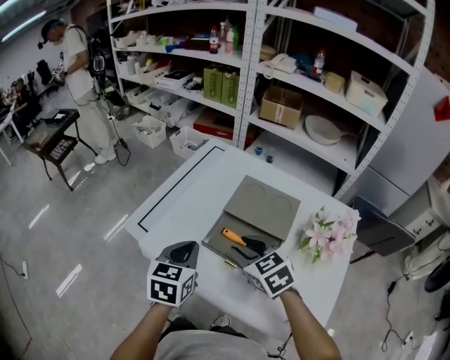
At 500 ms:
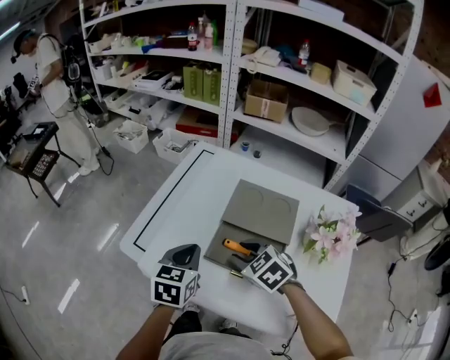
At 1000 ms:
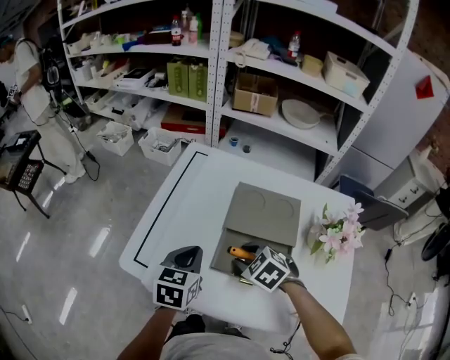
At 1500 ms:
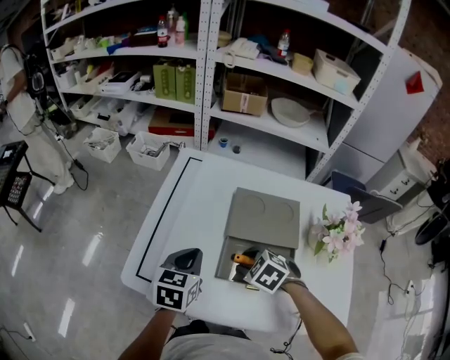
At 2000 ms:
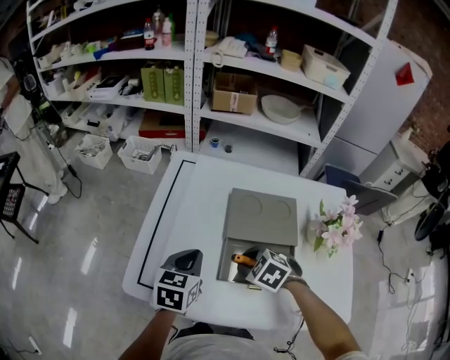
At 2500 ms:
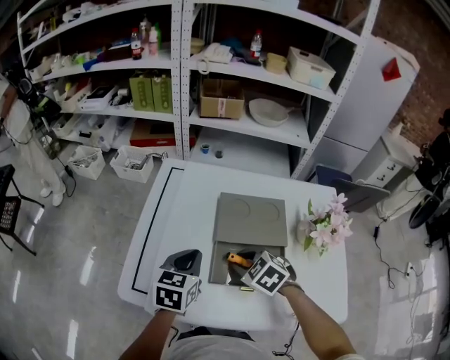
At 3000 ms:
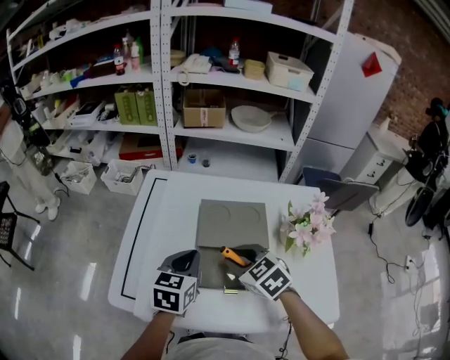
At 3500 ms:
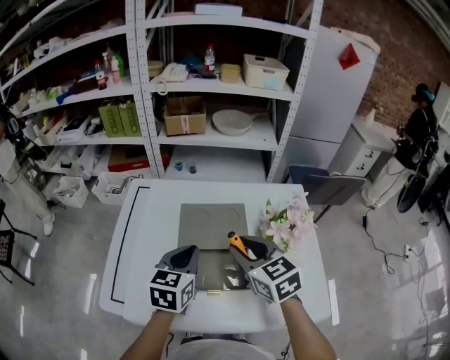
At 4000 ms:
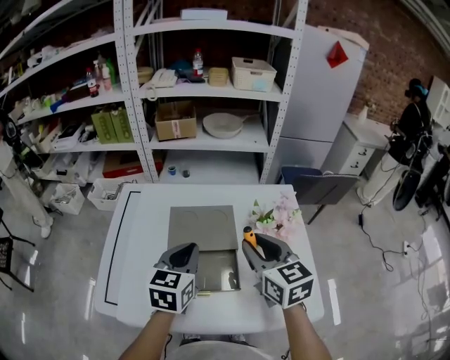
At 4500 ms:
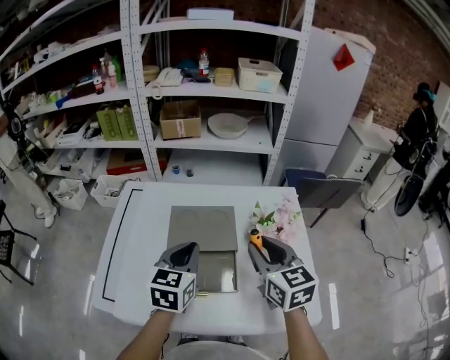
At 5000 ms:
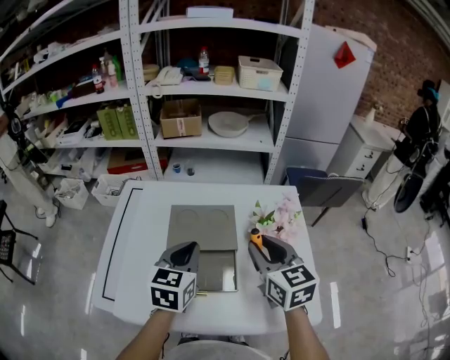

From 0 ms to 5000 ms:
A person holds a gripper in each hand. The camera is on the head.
From 0 ms to 2500 ms: The left gripper heads forward, covering about 15 cm, and swivels roughly 30 degrees, while the right gripper moves downward and forward, some 10 cm, and turns by approximately 20 degrees.
From 2500 ms to 5000 ms: Both grippers move to the right and upward, about 25 cm. The right gripper points its fingers roughly 40 degrees further upward.

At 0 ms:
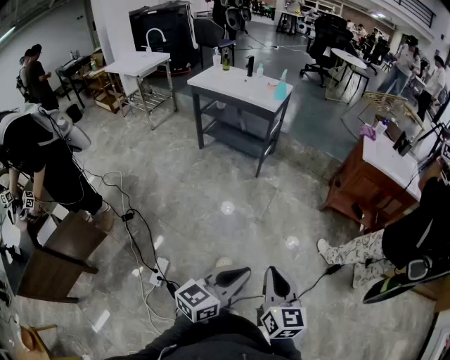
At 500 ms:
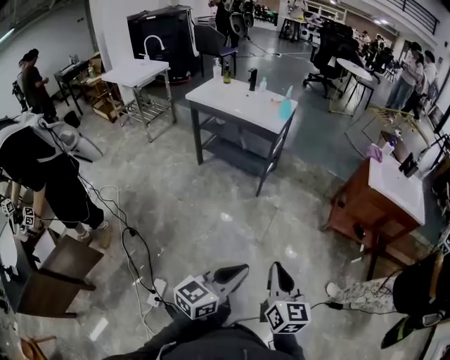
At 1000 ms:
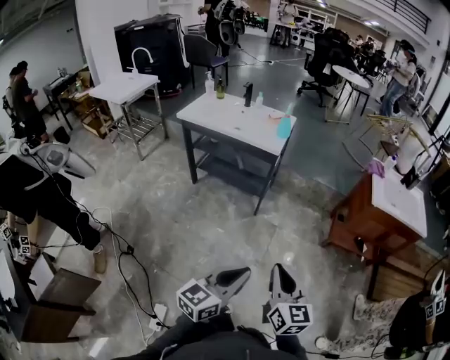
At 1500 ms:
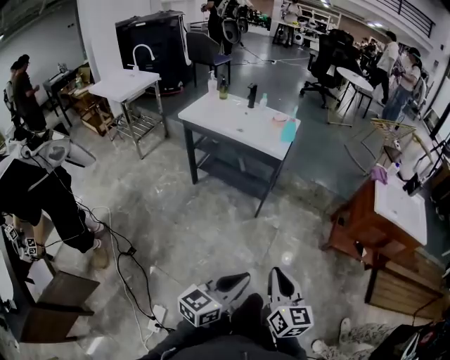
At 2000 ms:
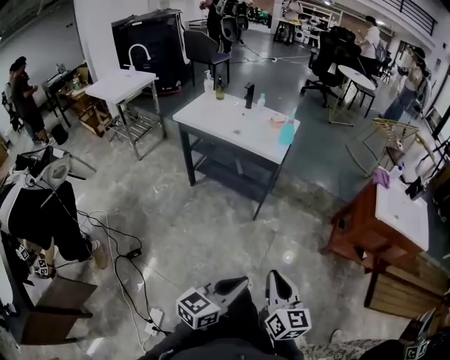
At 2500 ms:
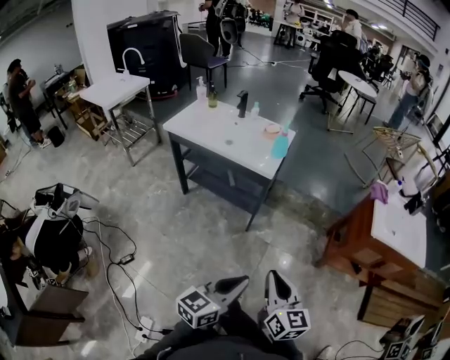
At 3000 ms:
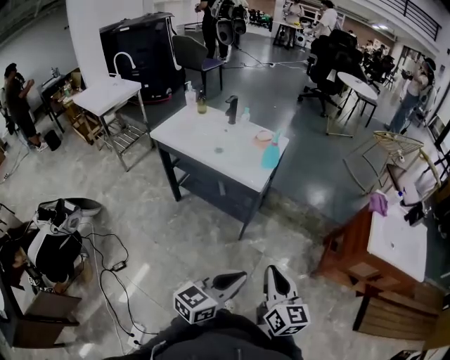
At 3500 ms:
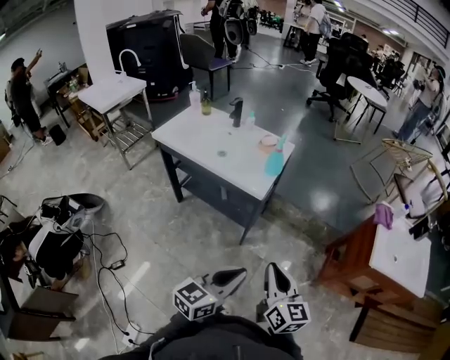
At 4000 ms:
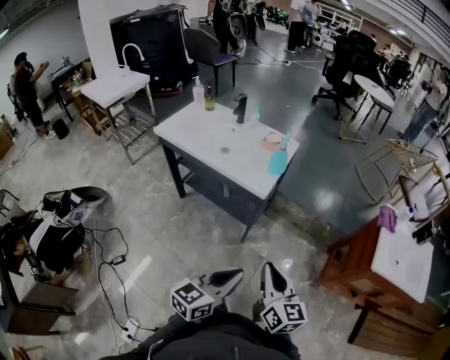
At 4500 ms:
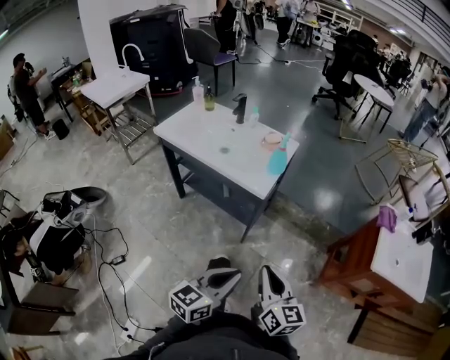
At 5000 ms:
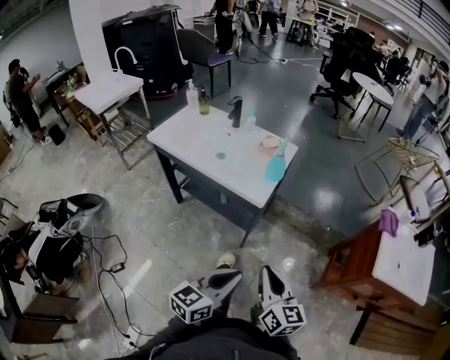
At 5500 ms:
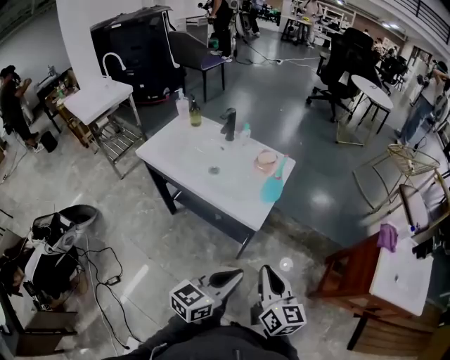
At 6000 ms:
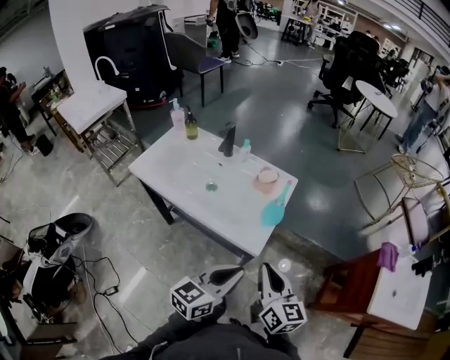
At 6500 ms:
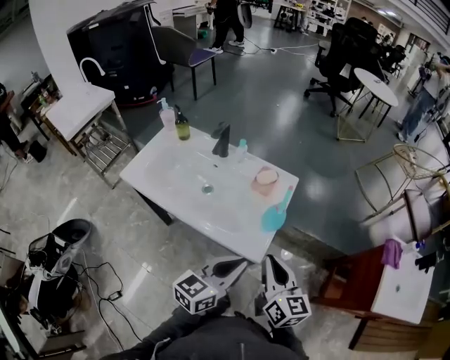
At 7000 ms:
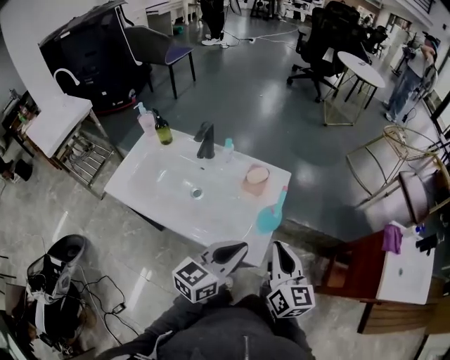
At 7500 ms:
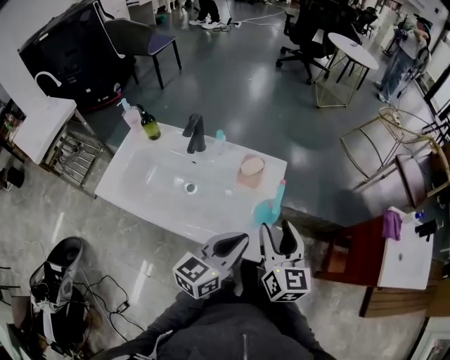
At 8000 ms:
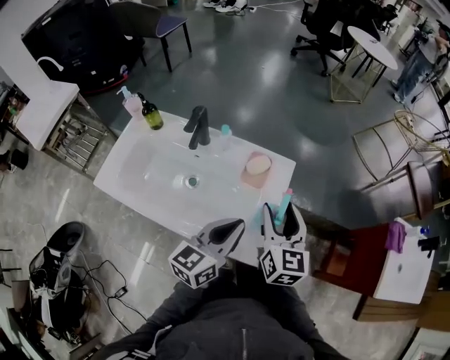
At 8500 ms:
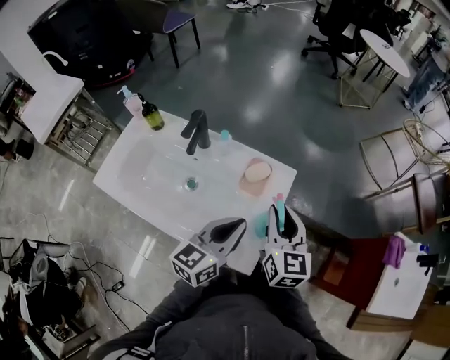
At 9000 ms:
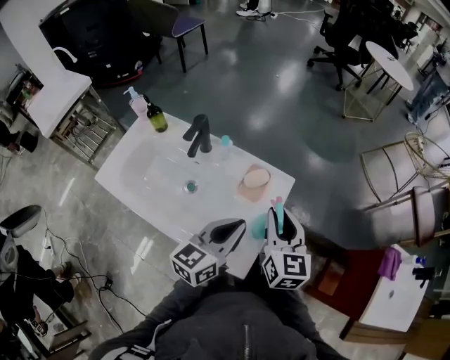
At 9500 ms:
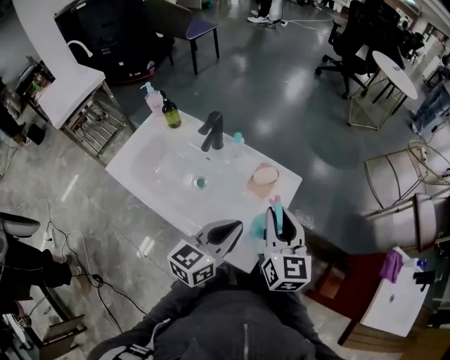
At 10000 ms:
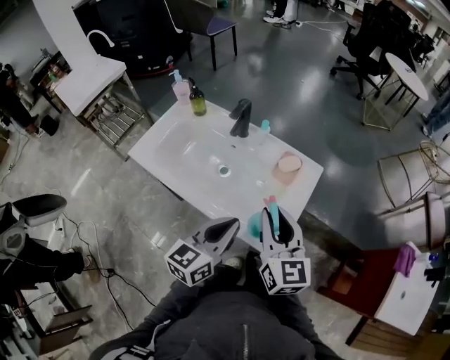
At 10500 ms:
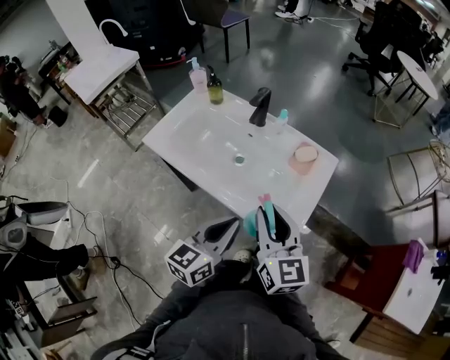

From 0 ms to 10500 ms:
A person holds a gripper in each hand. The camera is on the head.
From 0 ms to 2000 ms: The right gripper heads forward, covering approximately 35 cm, while the left gripper moves forward and to the left, some 35 cm.
From 2000 ms to 4000 ms: The grippers both shift forward by approximately 25 cm.
From 4000 ms to 6500 ms: The two grippers go roughly 30 cm forward.
From 6500 ms to 8500 ms: The grippers both shift forward by roughly 20 cm. The right gripper opens, then closes once more.
From 8500 ms to 10500 ms: Both grippers move backward and to the left, some 20 cm. The right gripper turns by roughly 20 degrees.

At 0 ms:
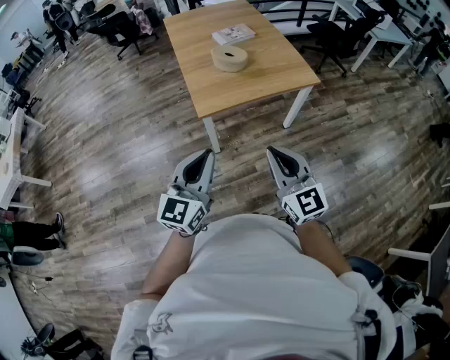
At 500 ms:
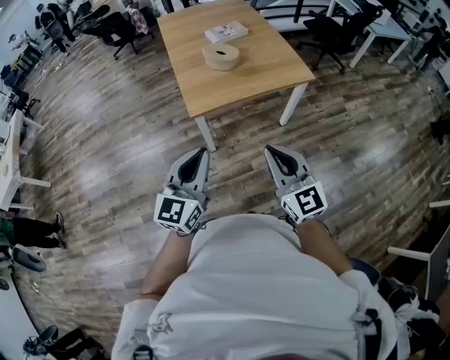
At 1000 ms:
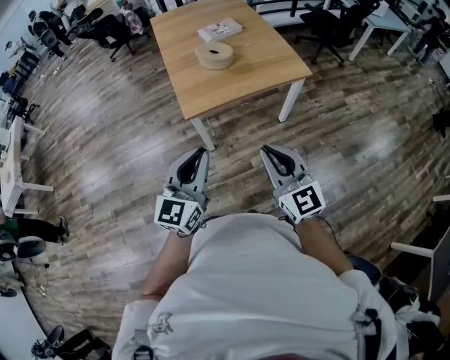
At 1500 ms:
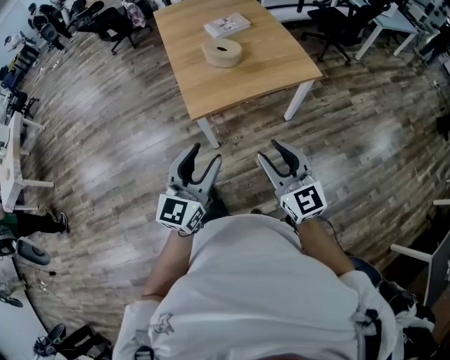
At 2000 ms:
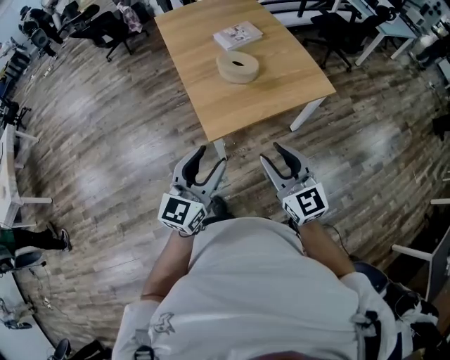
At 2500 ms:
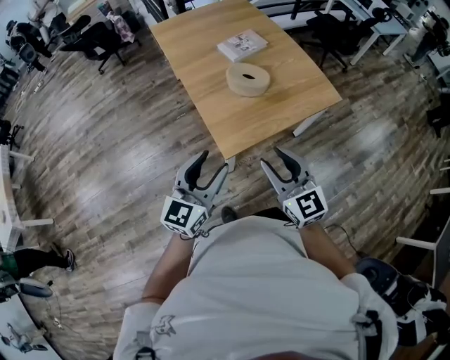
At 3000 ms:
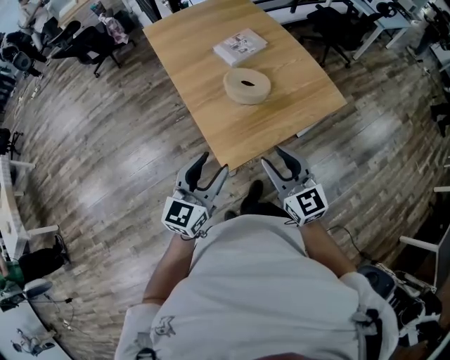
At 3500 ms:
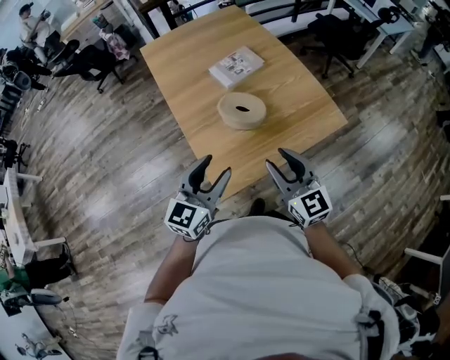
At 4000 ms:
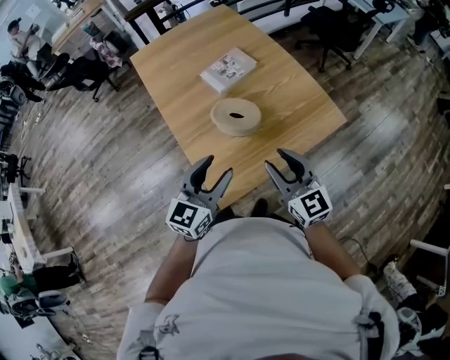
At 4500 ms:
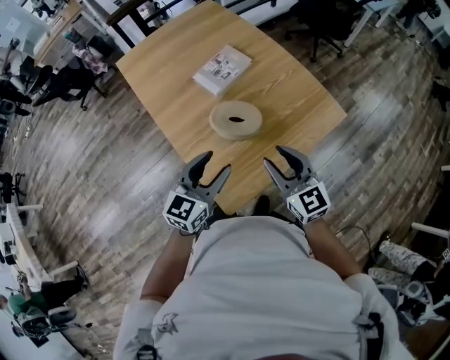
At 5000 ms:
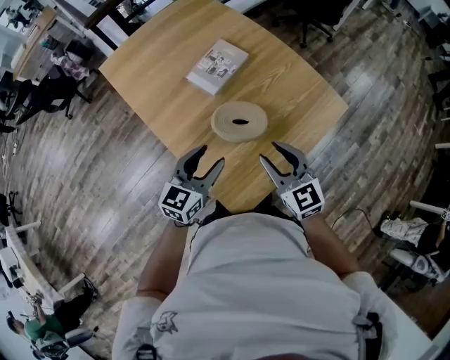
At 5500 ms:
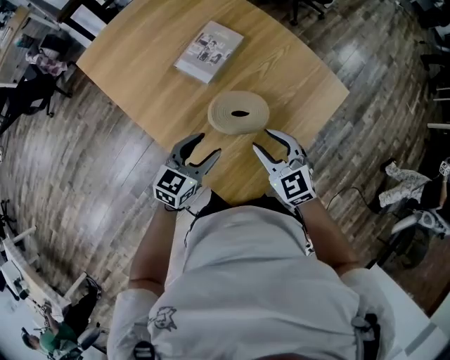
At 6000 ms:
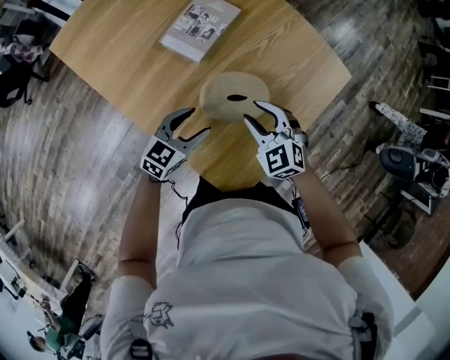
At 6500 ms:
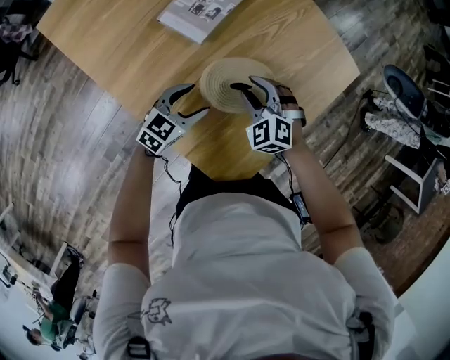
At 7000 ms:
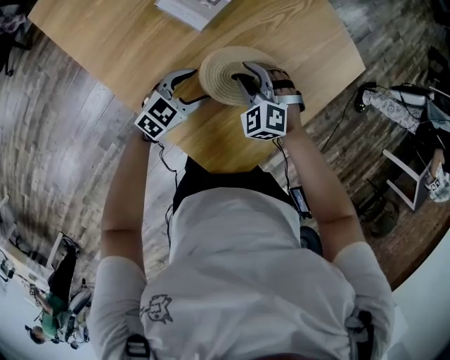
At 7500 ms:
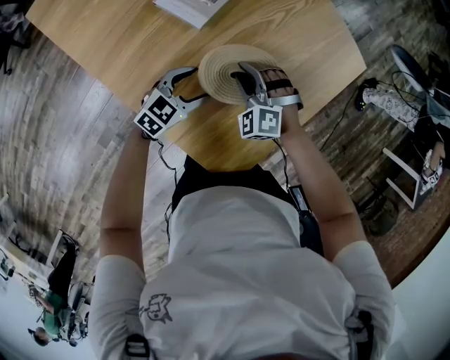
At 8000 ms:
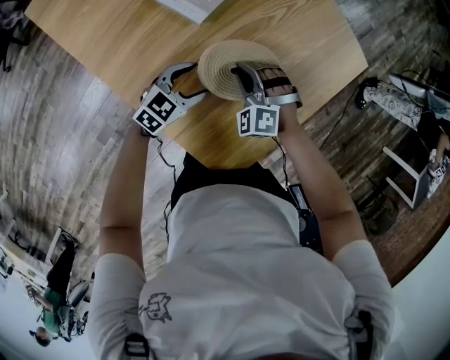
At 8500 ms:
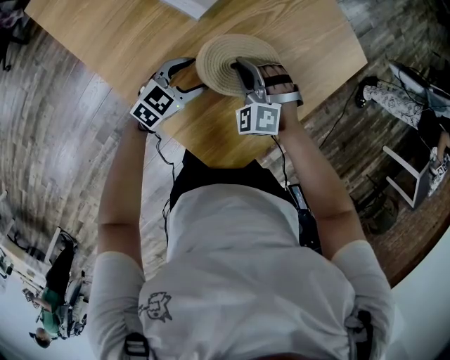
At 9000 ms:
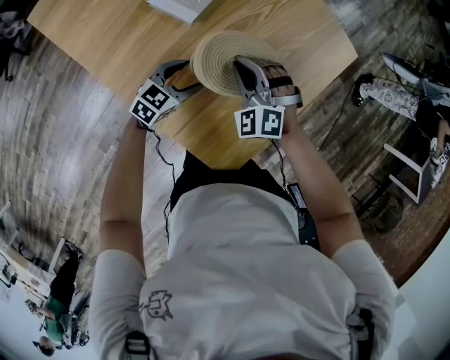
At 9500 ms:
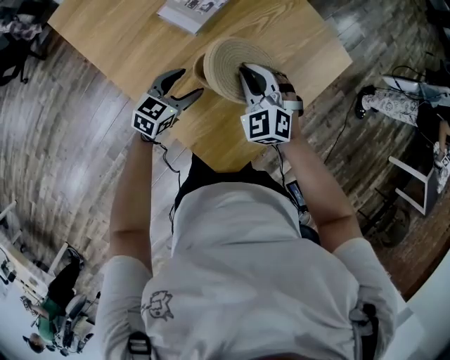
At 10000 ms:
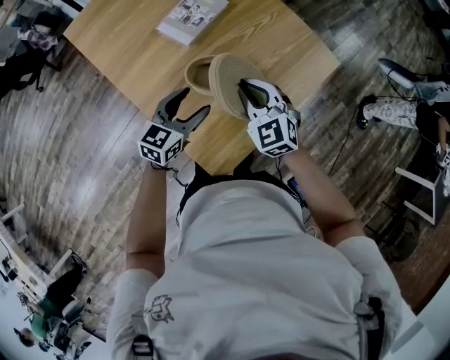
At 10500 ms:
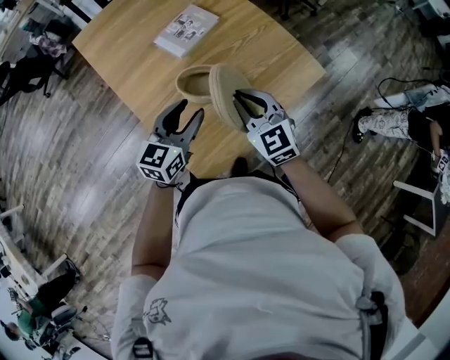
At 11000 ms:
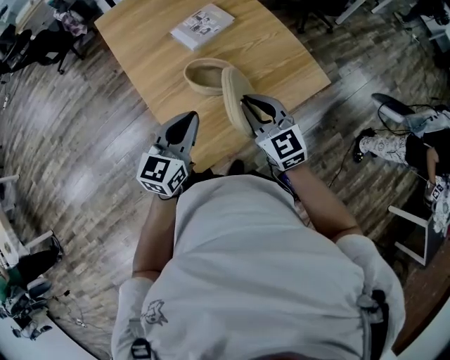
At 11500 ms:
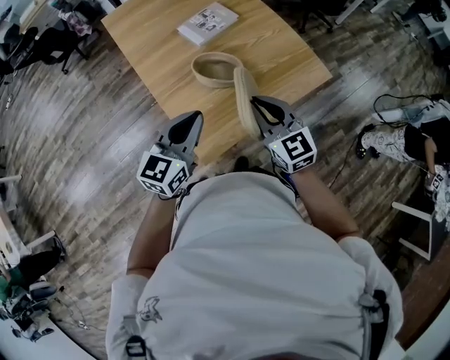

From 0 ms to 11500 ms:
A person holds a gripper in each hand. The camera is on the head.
From 0 ms to 2000 ms: The two grippers go about 20 cm forward. The left gripper opens its fingers, while the right gripper opens.
From 2000 ms to 4000 ms: Both grippers move forward, some 30 cm.
From 4000 ms to 6000 ms: The left gripper moves downward, about 25 cm, and swivels roughly 40 degrees. Meanwhile the right gripper shifts by roughly 30 cm, and tips its fingers downward by about 30 degrees.
From 6000 ms to 7500 ms: The two grippers go roughly 10 cm downward. The right gripper turns by some 30 degrees.
From 7500 ms to 9500 ms: The left gripper moves upward, about 5 cm; the right gripper goes about 10 cm upward, changes its angle by some 20 degrees, and closes.
From 9500 ms to 11500 ms: The right gripper changes place by approximately 25 cm, and turns by roughly 40 degrees, while the left gripper shifts about 25 cm upward, changes its angle by roughly 30 degrees, and closes its fingers.
